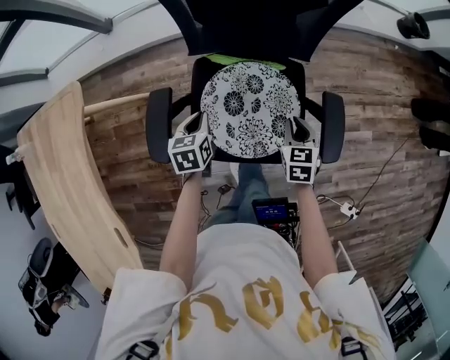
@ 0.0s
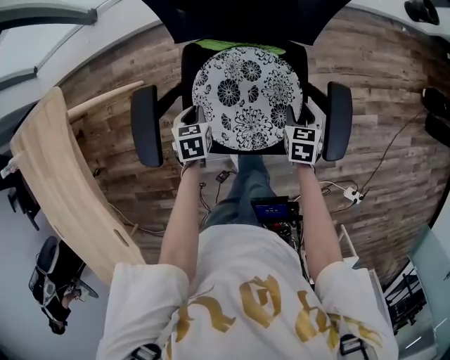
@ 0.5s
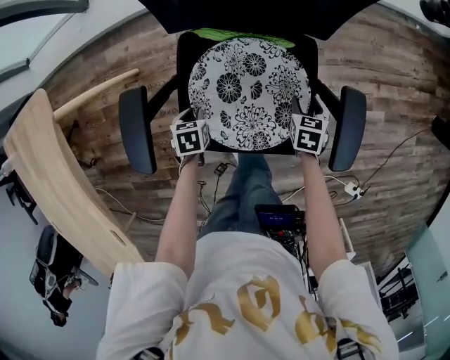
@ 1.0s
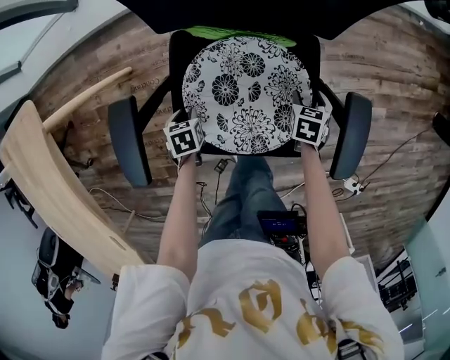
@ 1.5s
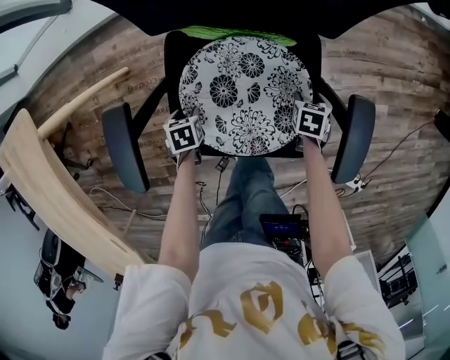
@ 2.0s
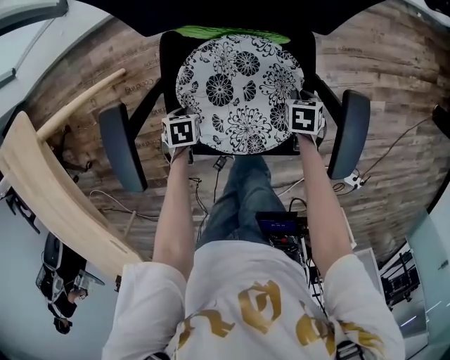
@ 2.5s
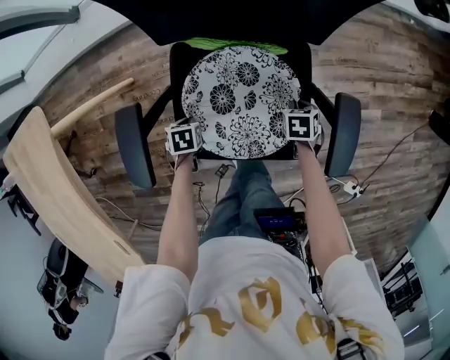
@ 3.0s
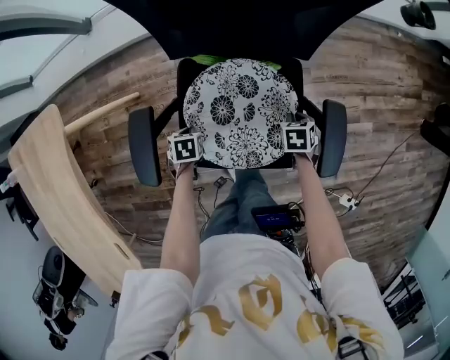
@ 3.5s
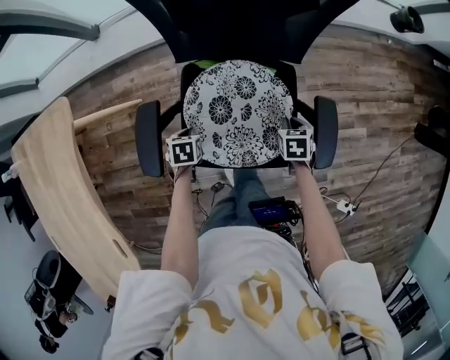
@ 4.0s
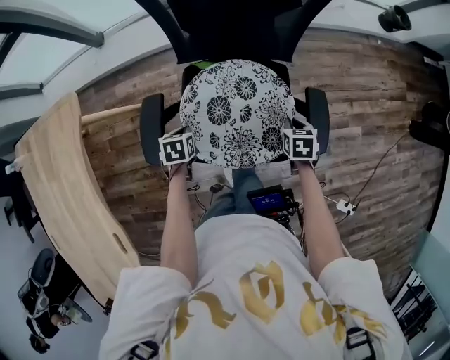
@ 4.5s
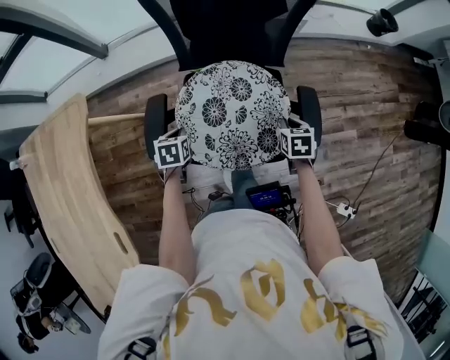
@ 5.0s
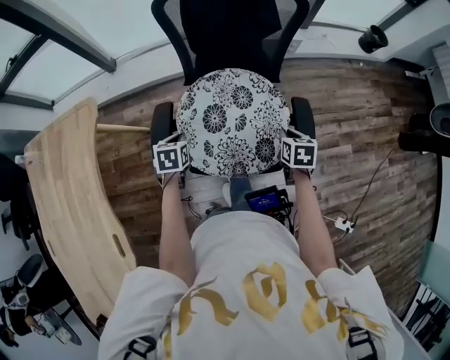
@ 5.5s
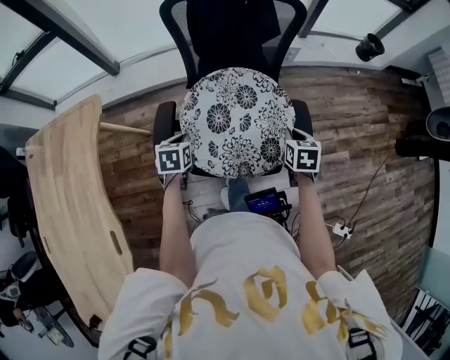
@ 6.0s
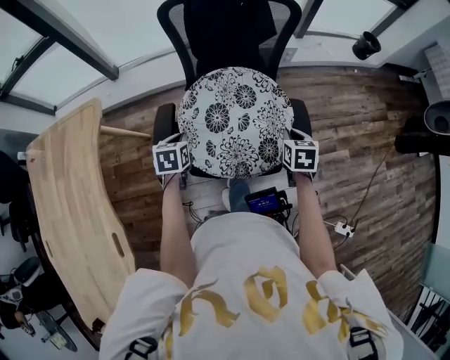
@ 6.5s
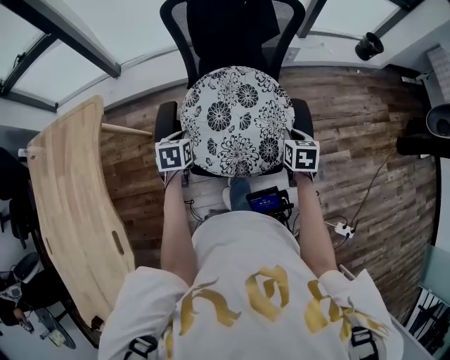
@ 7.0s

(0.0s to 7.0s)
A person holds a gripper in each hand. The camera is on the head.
0.0s - 2.0s: Both grippers travel together downward, some 25 cm. The left gripper points its fingers roughly 30 degrees further downward, and opens its fingers; the right gripper changes its angle by some 30 degrees, and opens its fingers.
2.0s - 3.5s: Both grippers move upward, some 10 cm. The right gripper closes its fingers, while the left gripper closes its fingers.
3.5s - 5.0s: Both grippers move upward, approximately 15 cm.
5.0s - 7.0s: The left gripper heads upward, covering about 10 cm. Meanwhile the right gripper travels upward and backward by some 10 cm.

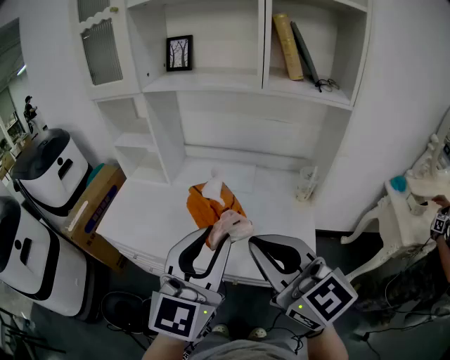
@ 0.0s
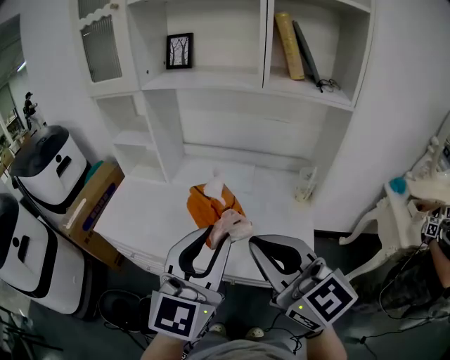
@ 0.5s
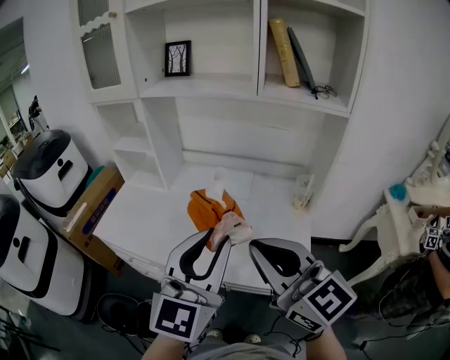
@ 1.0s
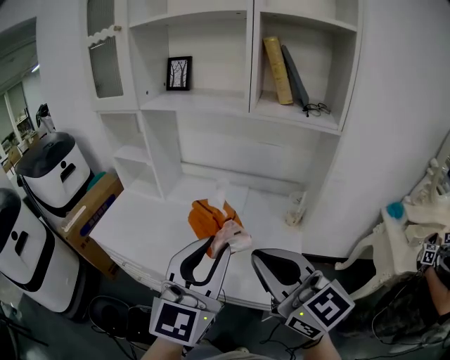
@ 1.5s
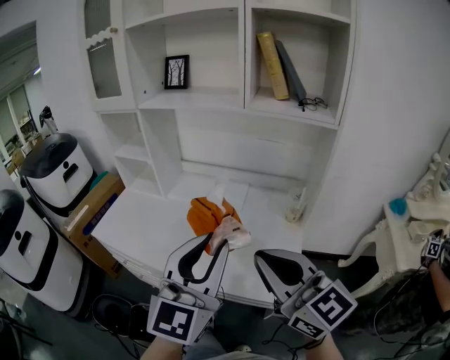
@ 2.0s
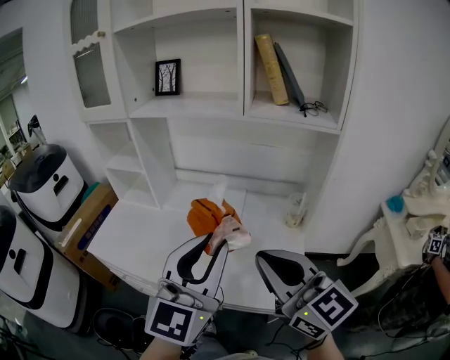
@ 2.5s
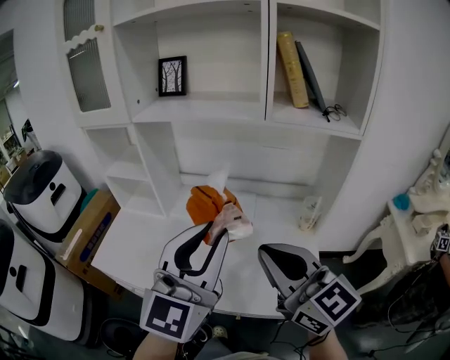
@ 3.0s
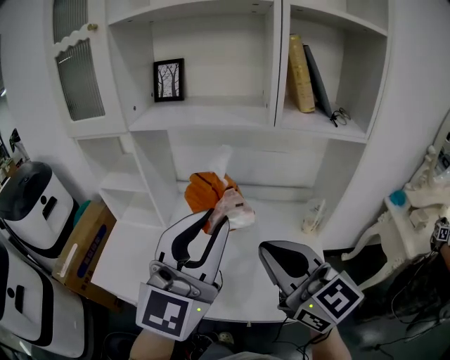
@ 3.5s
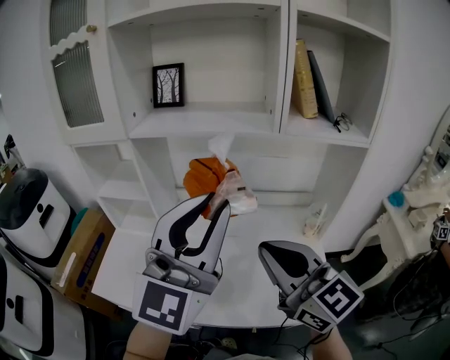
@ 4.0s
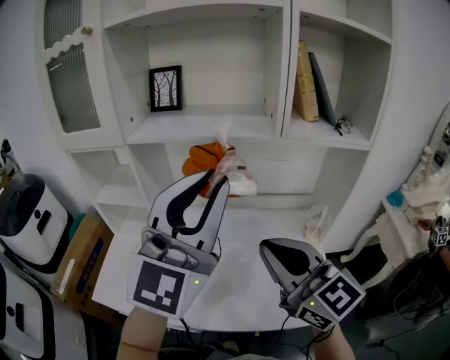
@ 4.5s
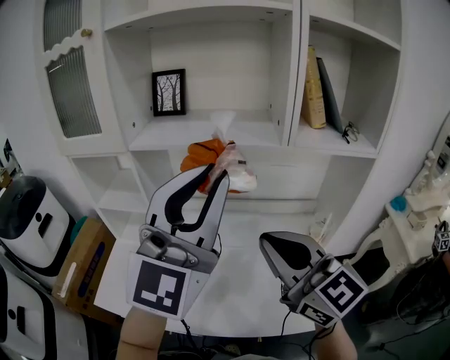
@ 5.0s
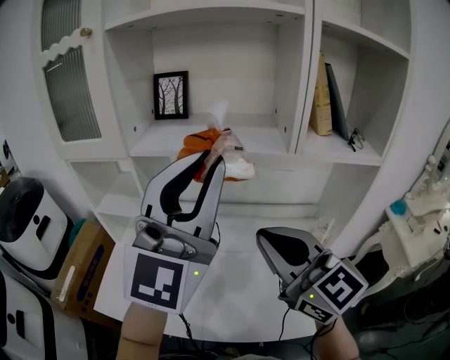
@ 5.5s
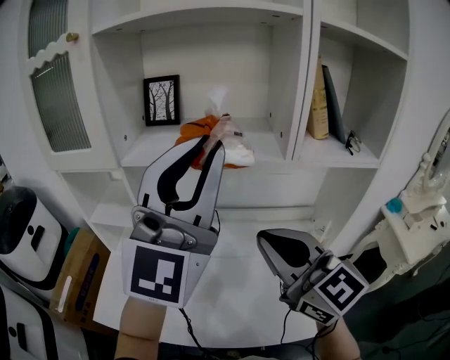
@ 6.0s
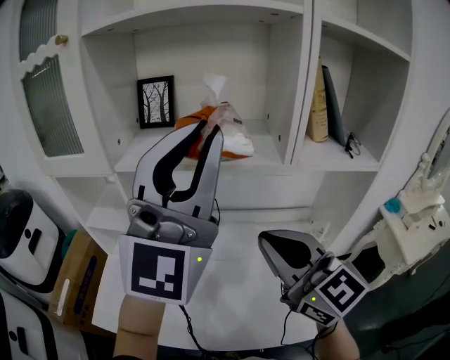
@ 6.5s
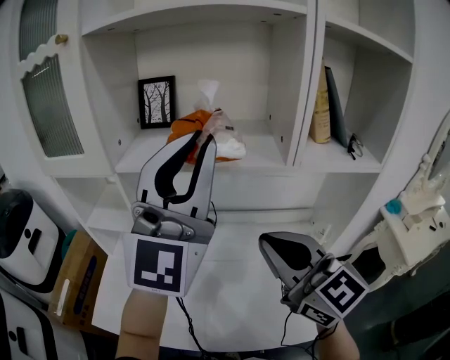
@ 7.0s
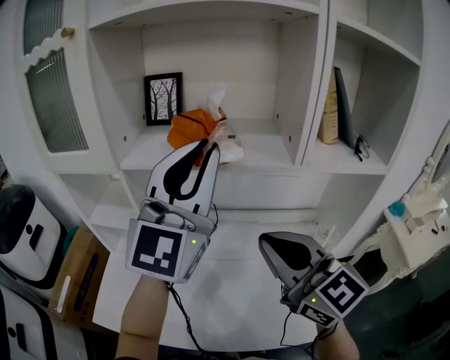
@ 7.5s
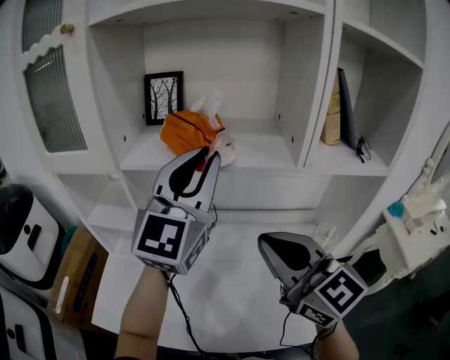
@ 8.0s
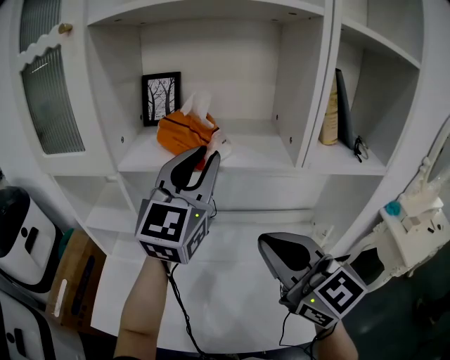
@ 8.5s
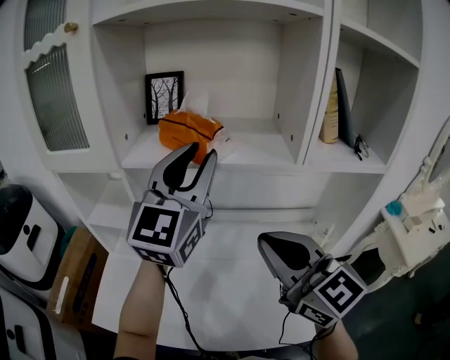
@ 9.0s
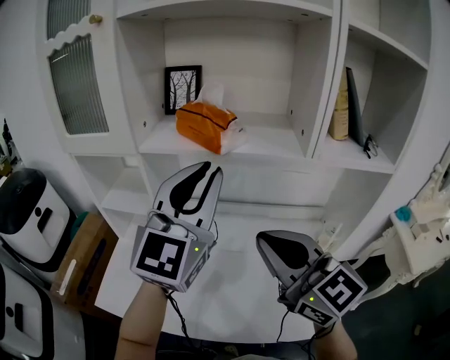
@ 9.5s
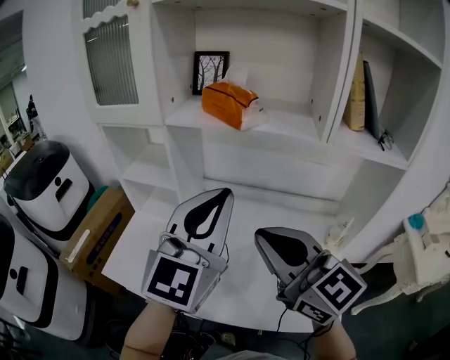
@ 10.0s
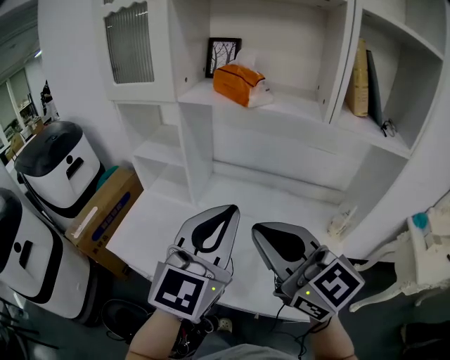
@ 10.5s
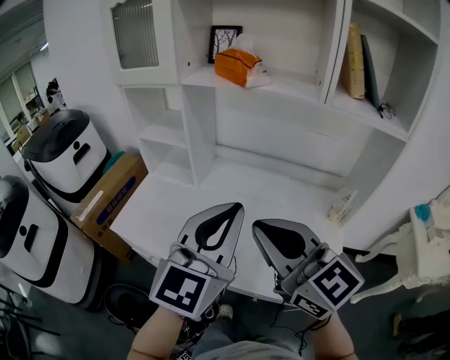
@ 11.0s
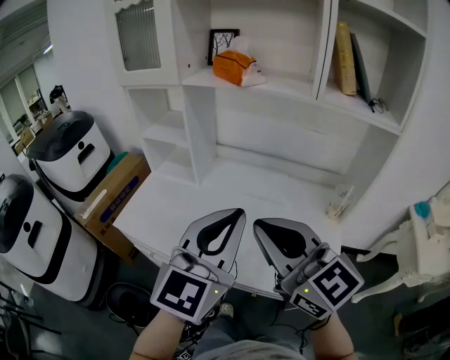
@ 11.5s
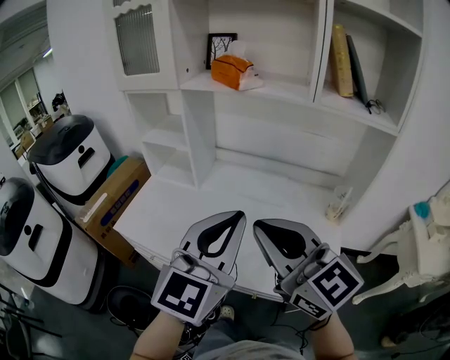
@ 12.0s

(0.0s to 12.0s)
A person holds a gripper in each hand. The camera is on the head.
0.0s - 2.0s: The grippers both shift to the right by some 10 cm.
2.0s - 4.0s: The left gripper moves forward, to the left and upward, about 20 cm, and swivels approximately 20 degrees; the right gripper heads forward and to the left, covering roughly 20 cm.
4.0s - 6.0s: The left gripper moves upward and forward, about 15 cm; the right gripper is displaced forward by some 10 cm.
6.0s - 8.0s: The left gripper heads forward and downward, covering some 15 cm, and turns by about 20 degrees.
8.0s - 10.0s: The right gripper shifts roughly 5 cm backward. The left gripper travels backward and downward by approximately 15 cm.
10.0s - 12.0s: The left gripper moves backward and downward, approximately 20 cm. Meanwhile the right gripper moves backward, about 15 cm.

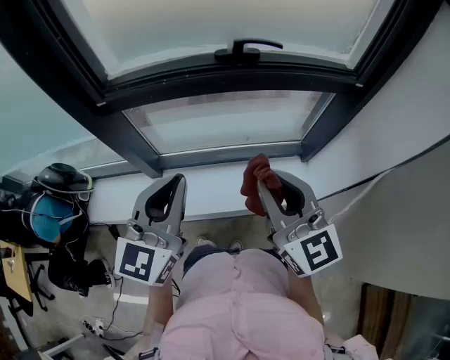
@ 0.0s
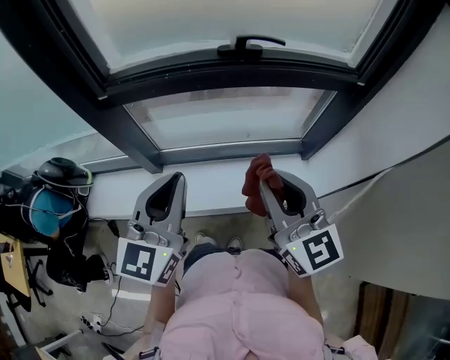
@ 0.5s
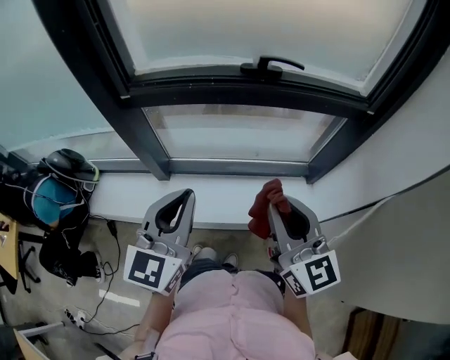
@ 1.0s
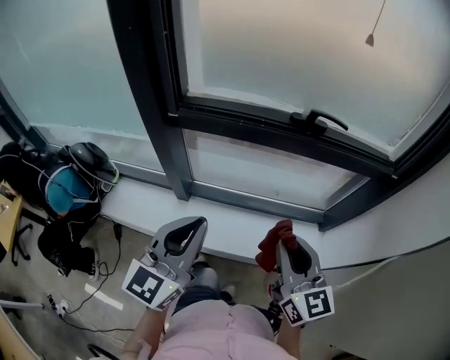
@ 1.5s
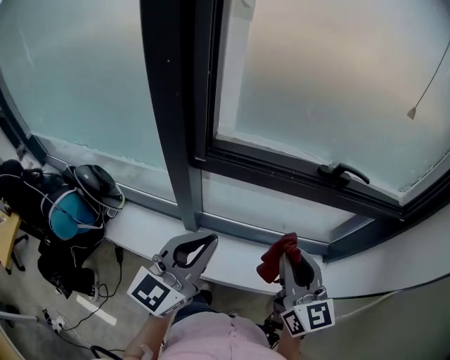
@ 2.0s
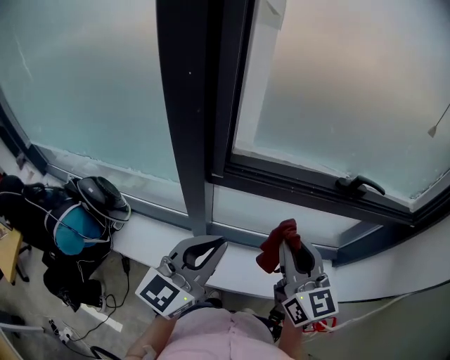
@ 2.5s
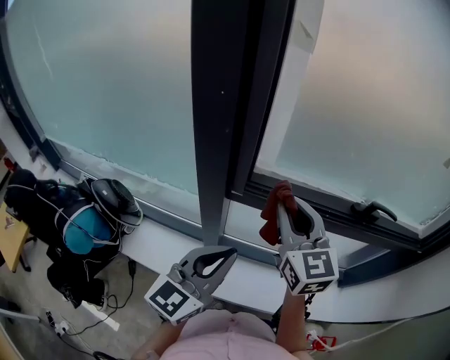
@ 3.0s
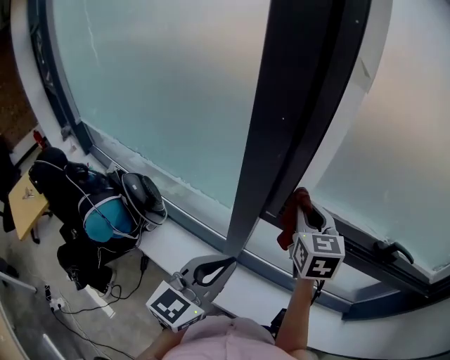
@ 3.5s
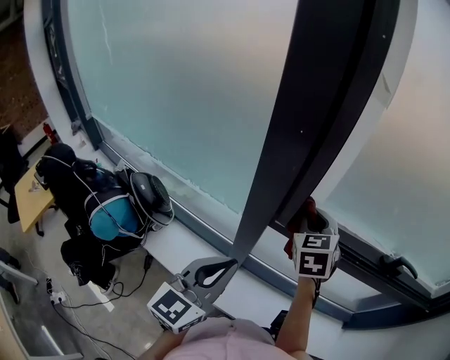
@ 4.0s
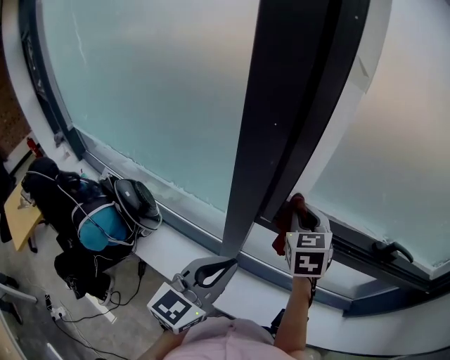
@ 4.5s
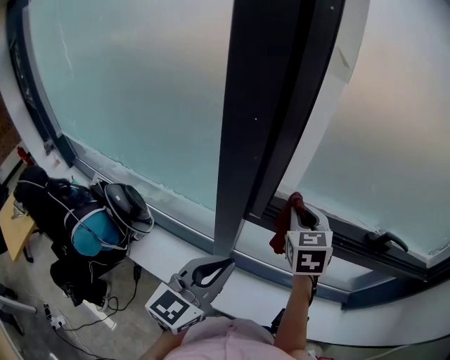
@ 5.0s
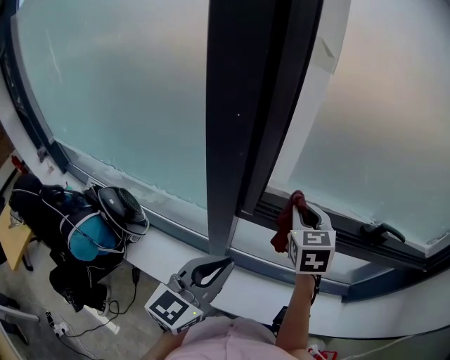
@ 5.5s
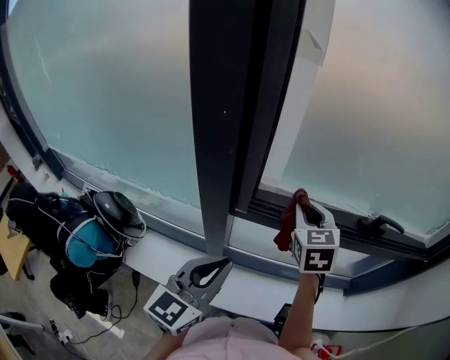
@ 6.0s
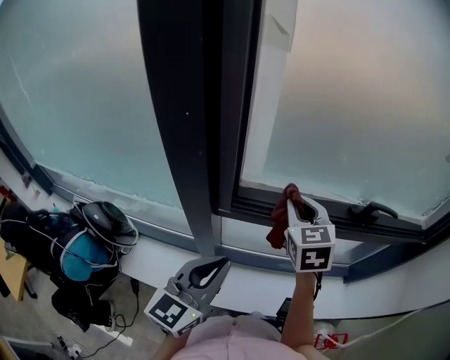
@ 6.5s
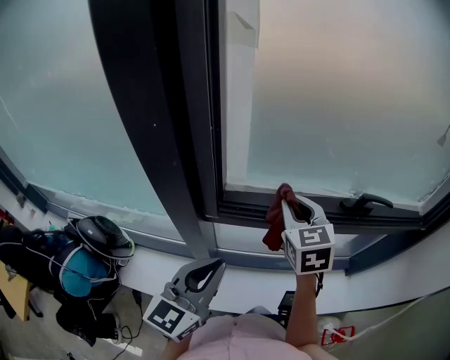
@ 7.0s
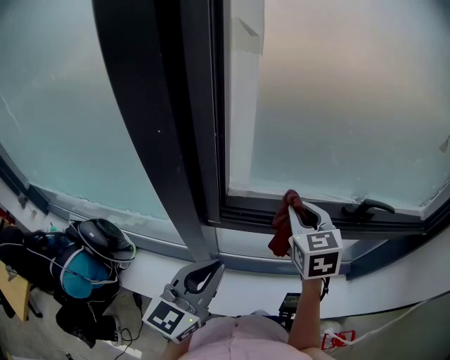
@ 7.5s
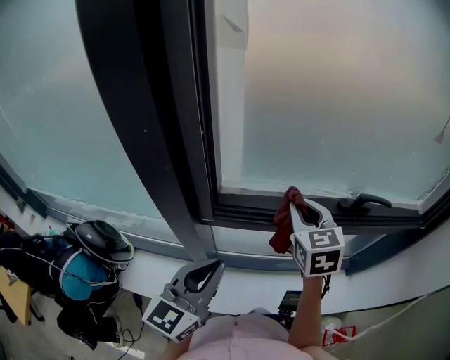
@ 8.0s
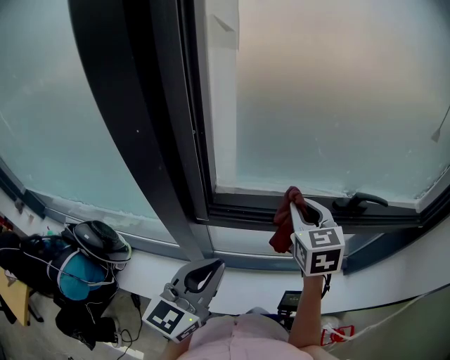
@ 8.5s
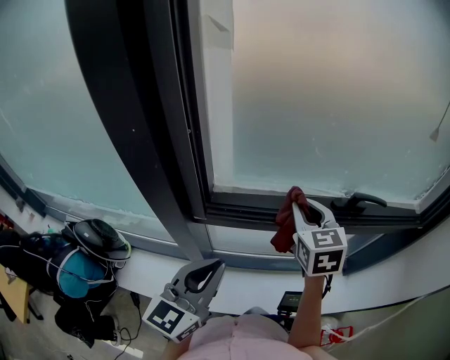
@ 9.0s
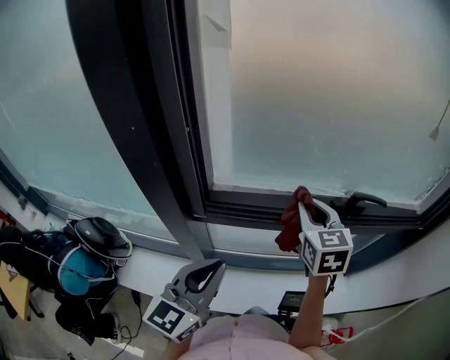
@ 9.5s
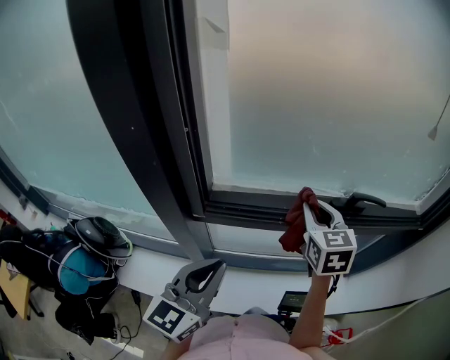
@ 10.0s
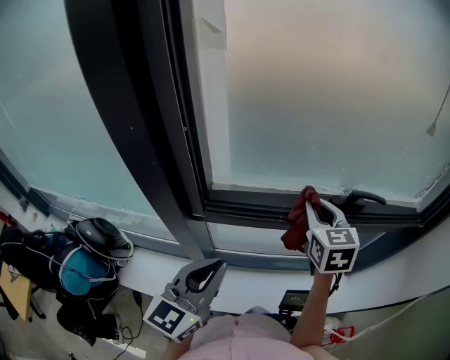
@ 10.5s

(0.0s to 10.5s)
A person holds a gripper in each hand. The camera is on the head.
0.0s - 2.0s: The right gripper travels to the left and forward by approximately 15 cm; the left gripper moves to the left, roughly 15 cm.
2.0s - 4.0s: The left gripper heads to the left and forward, covering roughly 15 cm. The right gripper heads forward and to the left, covering about 35 cm, and turns by roughly 40 degrees.
4.0s - 6.5s: The right gripper travels to the right by about 10 cm. Meanwhile the left gripper heads to the right, covering some 10 cm.
6.5s - 8.5s: The right gripper moves to the right, about 5 cm.
8.5s - 10.5s: The right gripper travels to the right by approximately 5 cm.
